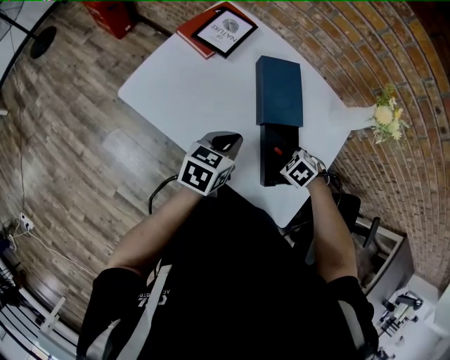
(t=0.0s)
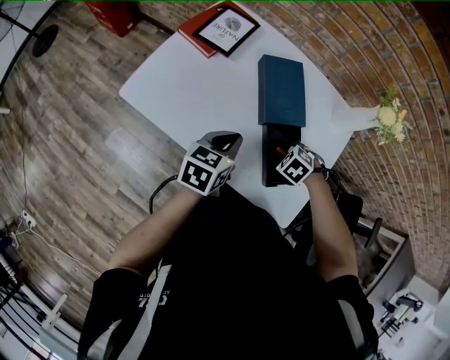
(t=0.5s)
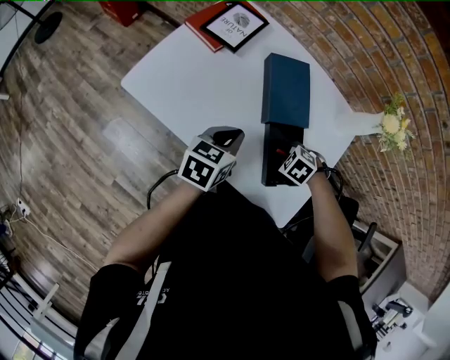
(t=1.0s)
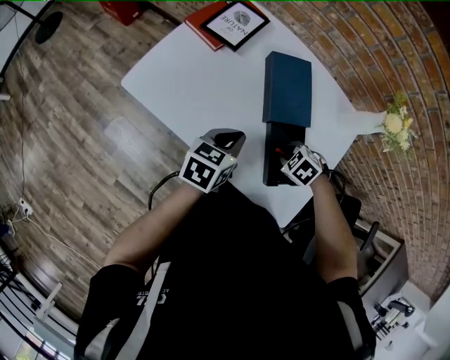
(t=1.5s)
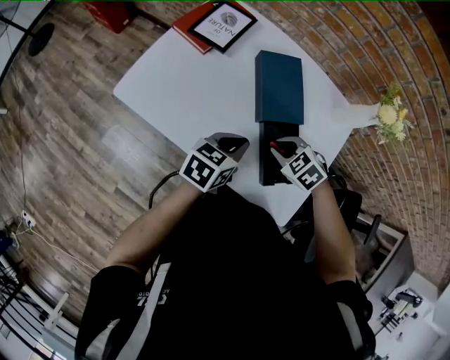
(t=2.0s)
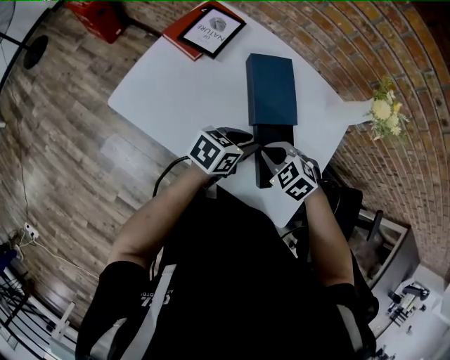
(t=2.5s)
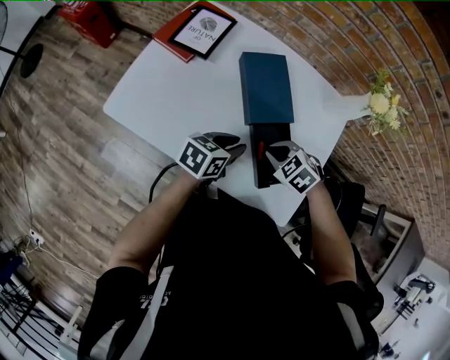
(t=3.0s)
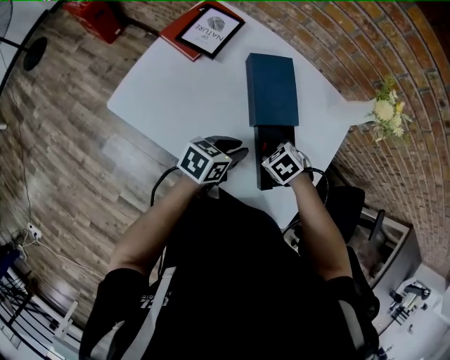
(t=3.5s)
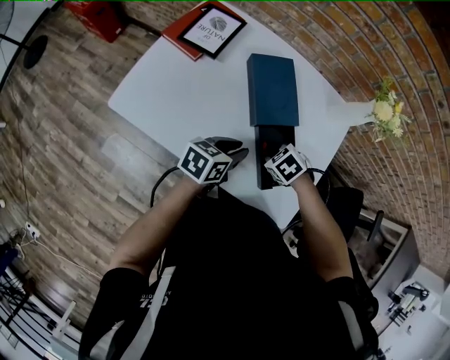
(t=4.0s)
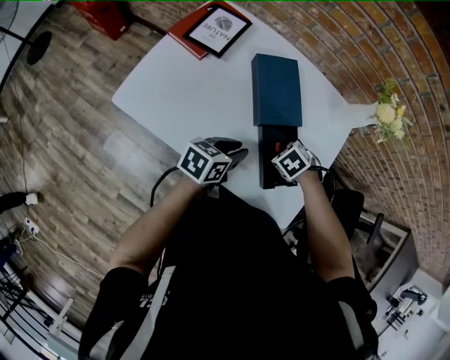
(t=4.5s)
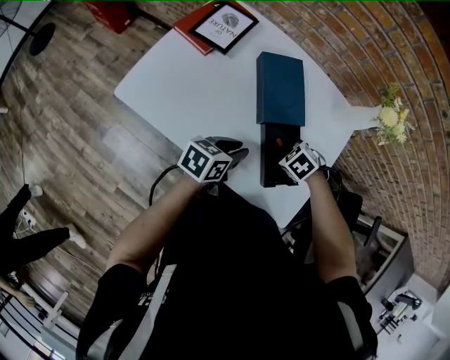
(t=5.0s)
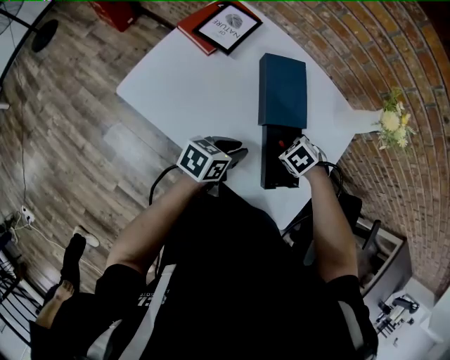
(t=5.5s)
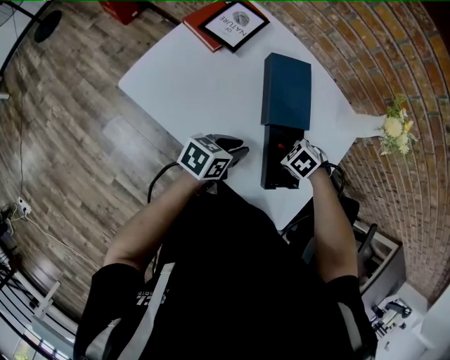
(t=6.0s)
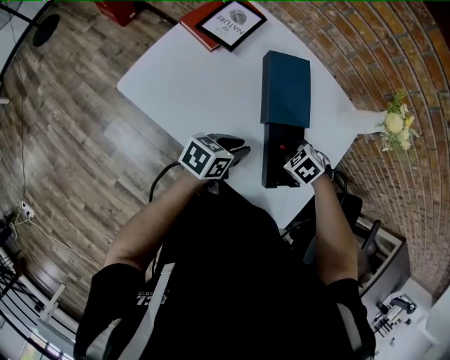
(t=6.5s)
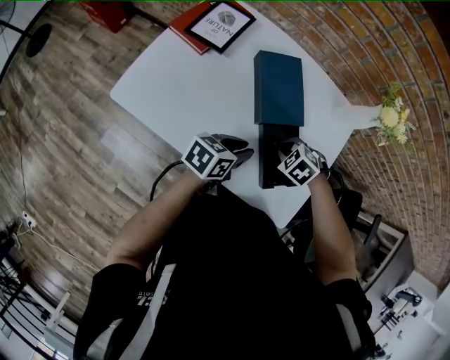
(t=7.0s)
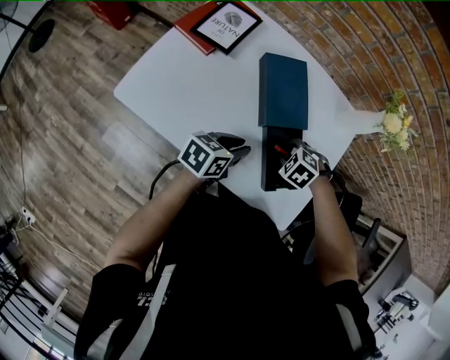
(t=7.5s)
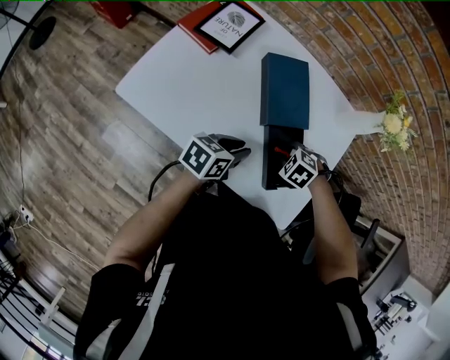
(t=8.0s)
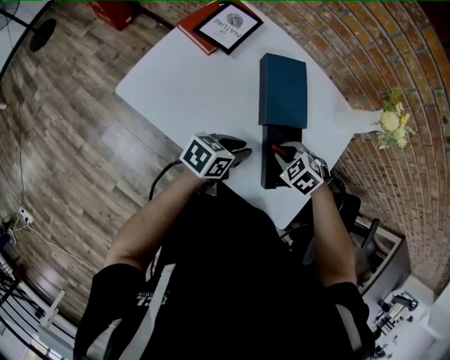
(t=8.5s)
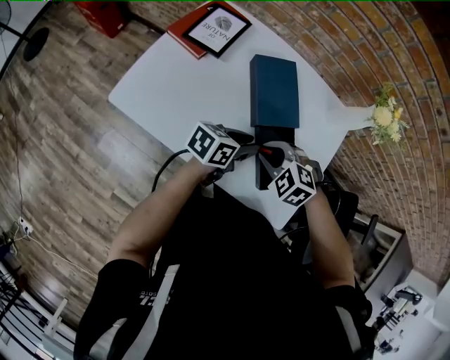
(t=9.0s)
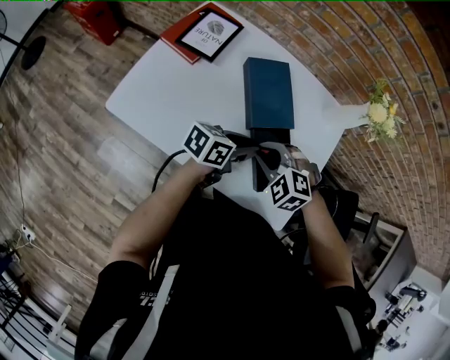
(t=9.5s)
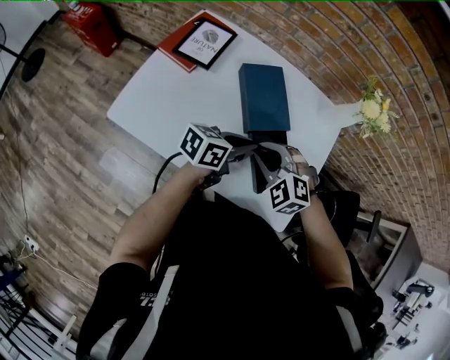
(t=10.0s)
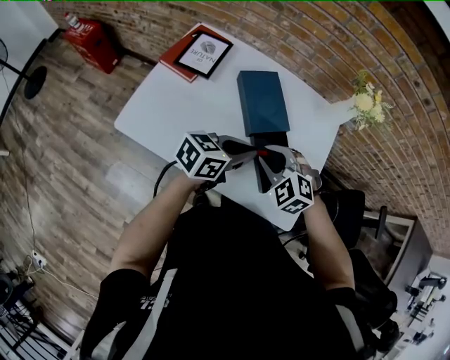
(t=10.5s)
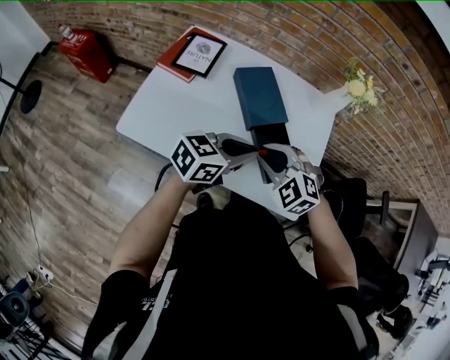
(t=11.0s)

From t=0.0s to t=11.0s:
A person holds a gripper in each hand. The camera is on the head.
From t=0.0s to t=2.0s: The right gripper shifts by about 10 cm.
From t=2.0s to t=3.5s: The right gripper shifts about 5 cm downward; the left gripper opens.
From t=3.5s to t=7.5s: The grippers make only small movements.
From t=7.5s to t=9.0s: The right gripper is displaced upward by about 10 cm, and changes its angle by approximately 20 degrees.
From t=9.0s to t=11.0s: The left gripper is displaced upward and backward by approximately 15 cm, turns by some 30 degrees, and closes its fingers, while the right gripper heads upward, covering roughly 10 cm, and turns by approximately 20 degrees.

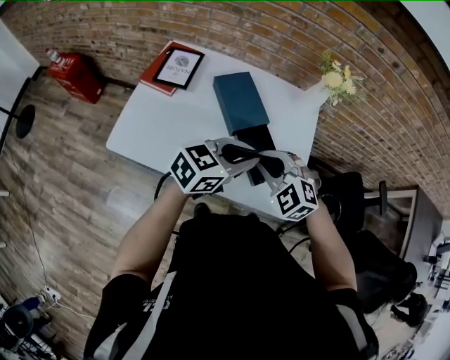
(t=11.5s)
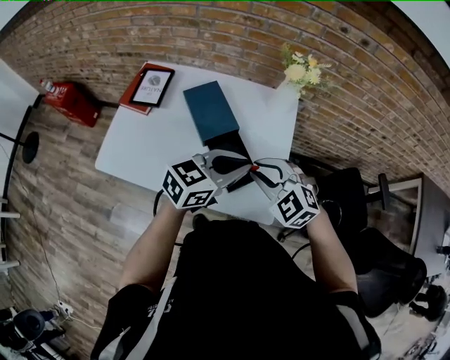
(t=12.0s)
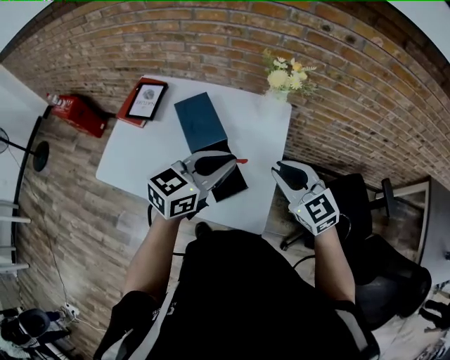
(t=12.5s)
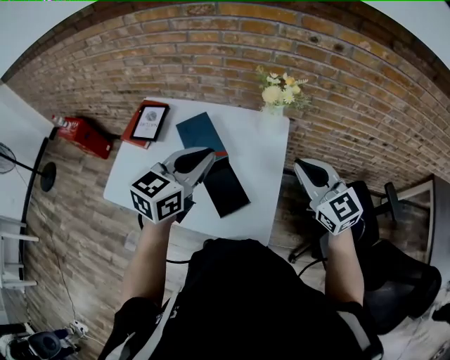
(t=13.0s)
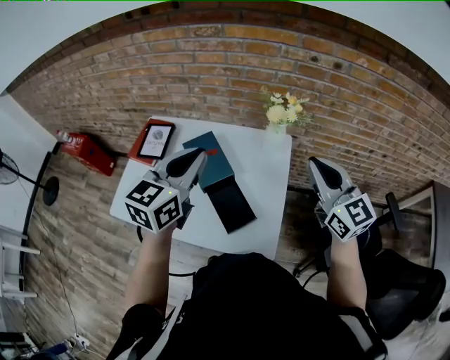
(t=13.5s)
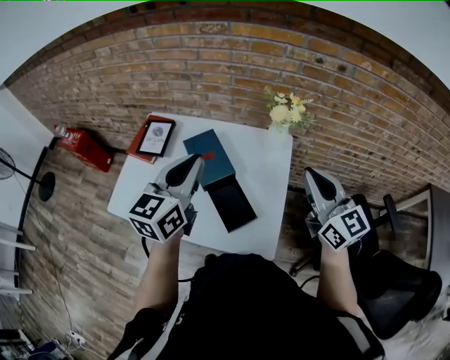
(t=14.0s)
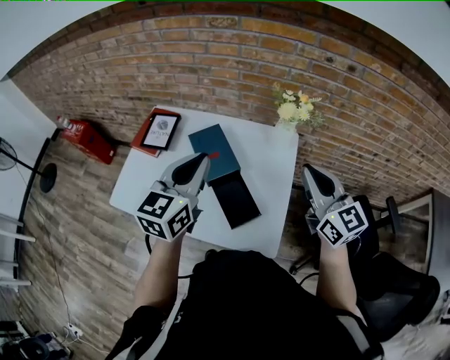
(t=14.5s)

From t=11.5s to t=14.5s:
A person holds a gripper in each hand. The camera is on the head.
From t=11.5s to t=13.0s: The left gripper travels upward, forward and to the right by roughly 15 cm, and changes its angle by about 20 degrees, while the right gripper is displaced to the right and upward by roughly 30 cm, and tips its fingers upward by approximately 30 degrees.
From t=13.0s to t=14.5s: The left gripper goes some 5 cm to the left. Meanwhile the right gripper ends up some 5 cm from where it was.

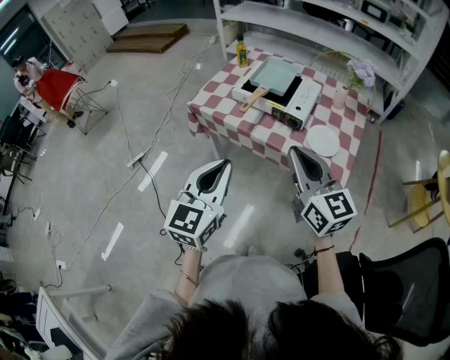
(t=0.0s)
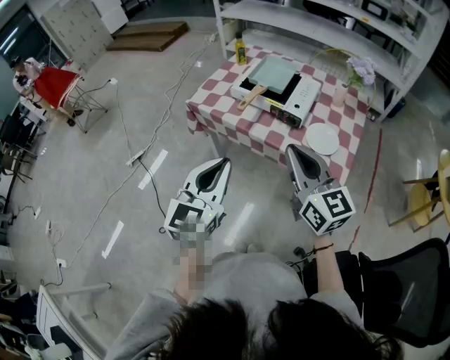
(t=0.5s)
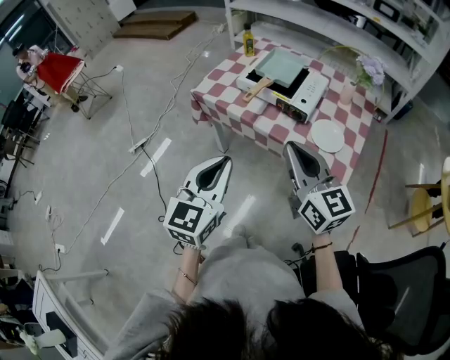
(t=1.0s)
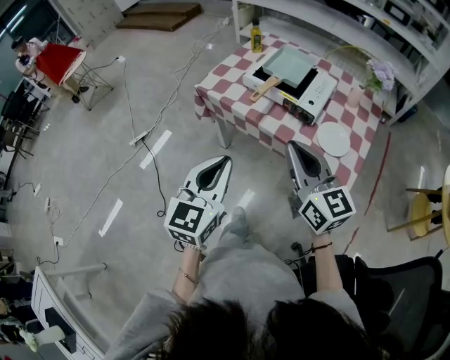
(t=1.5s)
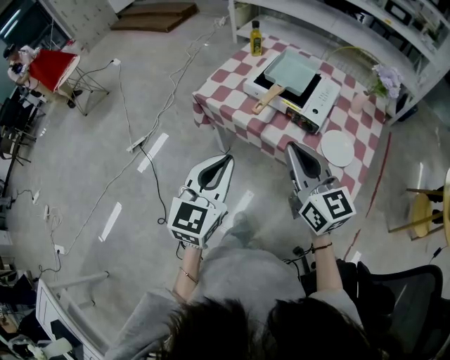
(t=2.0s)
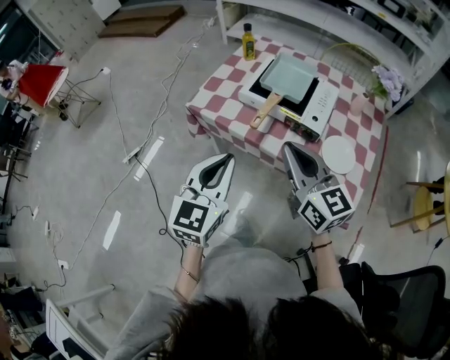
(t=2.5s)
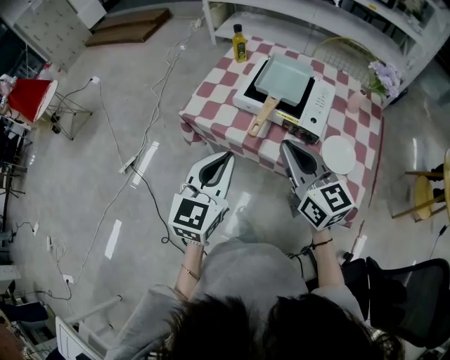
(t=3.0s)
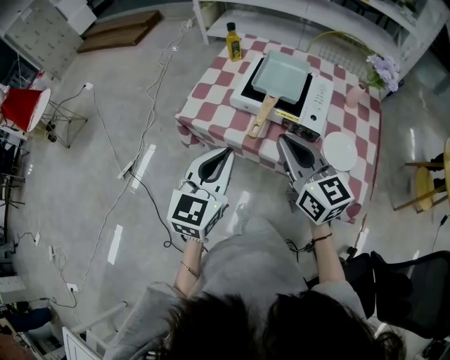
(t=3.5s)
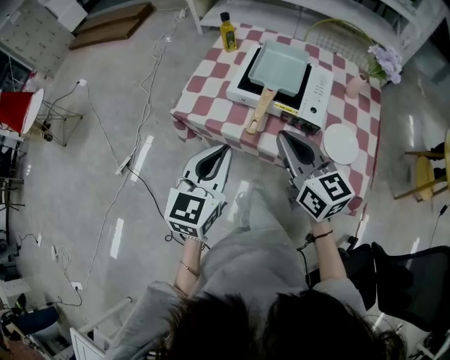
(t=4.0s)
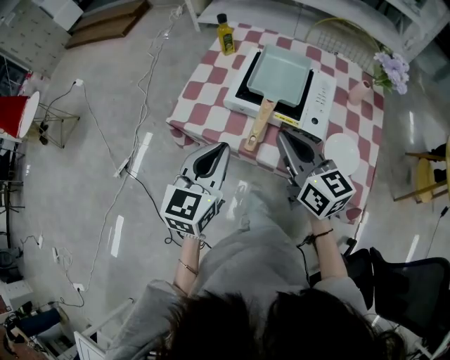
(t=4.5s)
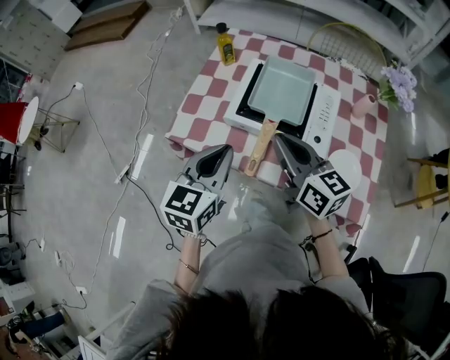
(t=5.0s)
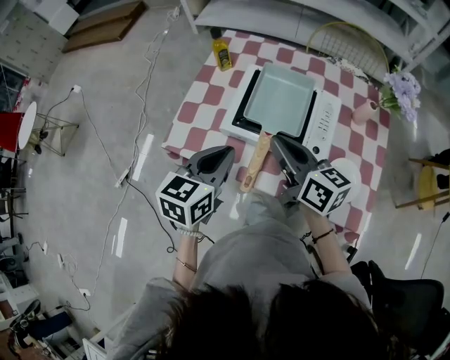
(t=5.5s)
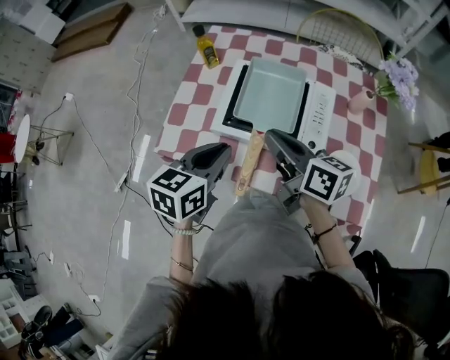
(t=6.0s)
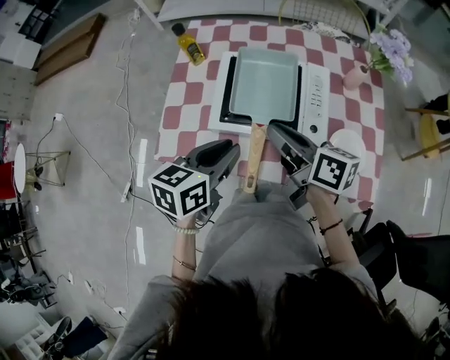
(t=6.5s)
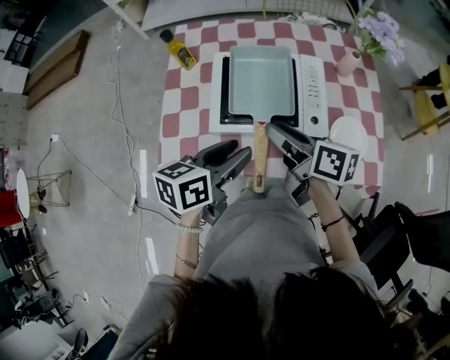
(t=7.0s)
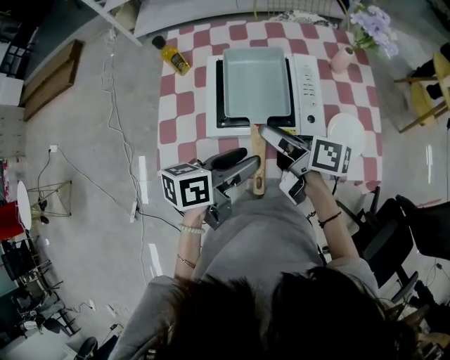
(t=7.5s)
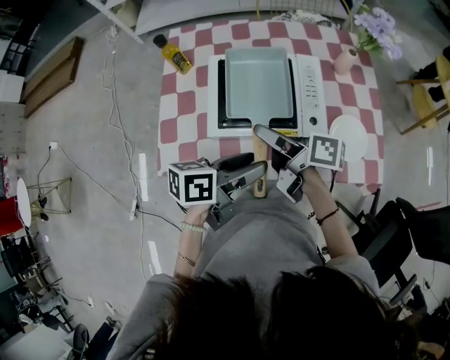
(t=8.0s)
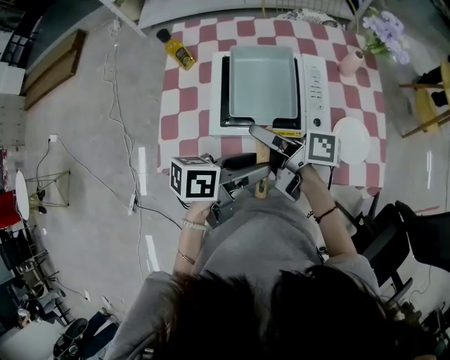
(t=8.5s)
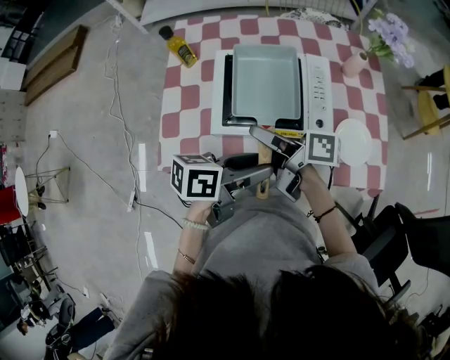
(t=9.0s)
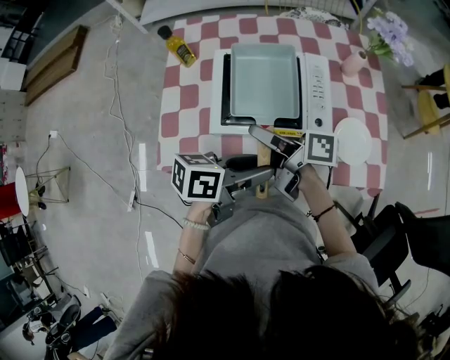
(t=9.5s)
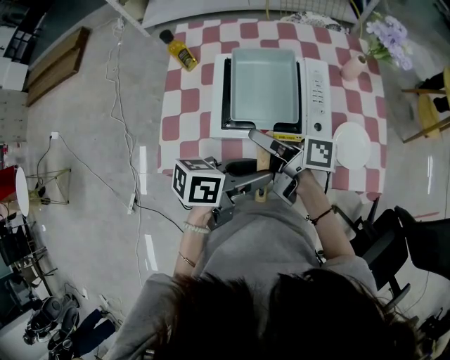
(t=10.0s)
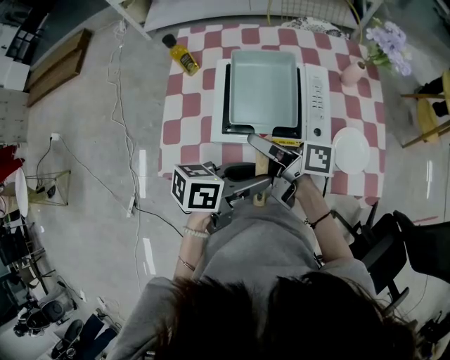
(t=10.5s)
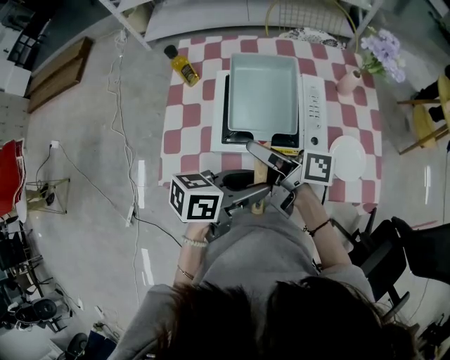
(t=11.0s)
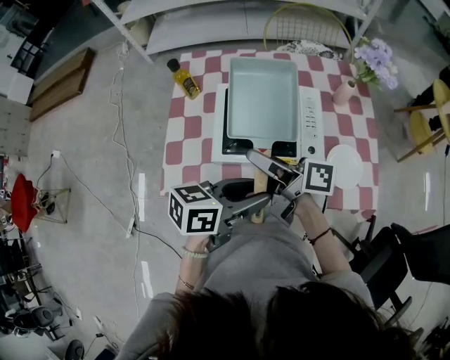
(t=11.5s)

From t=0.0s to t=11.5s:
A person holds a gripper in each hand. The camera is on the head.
From t=0.0s to t=2.0s: Both grippers move forward, roughly 5 cm.
From t=2.0s to t=4.0s: The two grippers go roughly 15 cm forward.
From t=4.0s to t=6.0s: The two grippers go approximately 15 cm forward. The right gripper changes its angle by approximately 30 degrees. Meanwhile the left gripper swivels about 30 degrees.
From t=6.0s to t=7.5s: The right gripper turns by approximately 30 degrees, and opens its fingers. Meanwhile the left gripper changes its angle by about 40 degrees, and opens its fingers.
From t=7.5s to t=9.5s: The grippers make only small movements.
From t=9.5s to t=11.5s: The right gripper is displaced upward by roughly 5 cm.

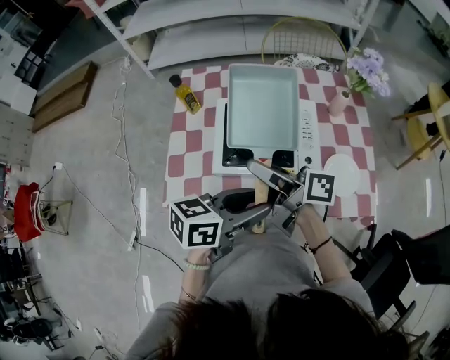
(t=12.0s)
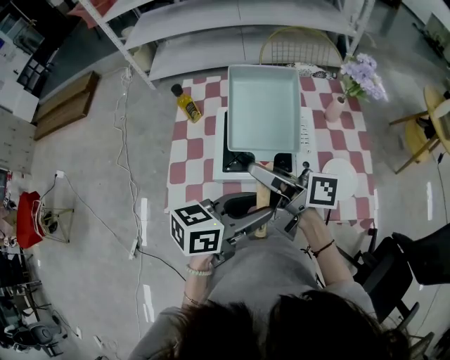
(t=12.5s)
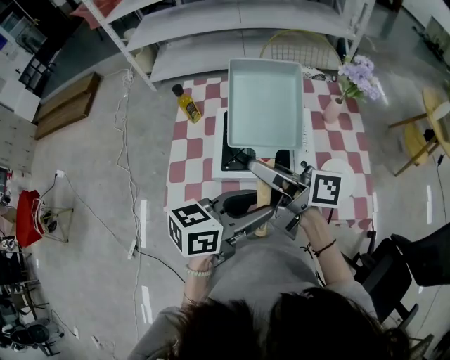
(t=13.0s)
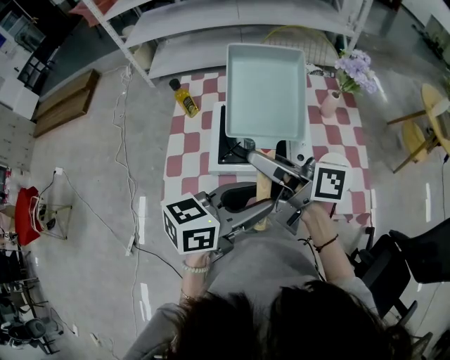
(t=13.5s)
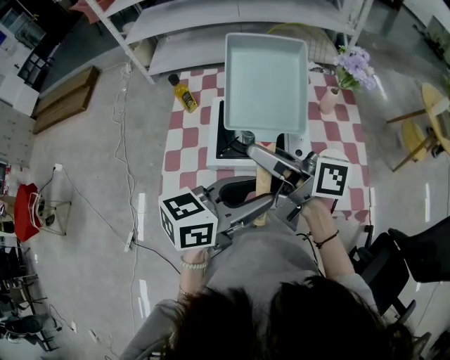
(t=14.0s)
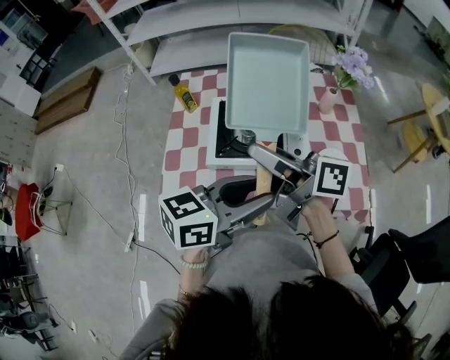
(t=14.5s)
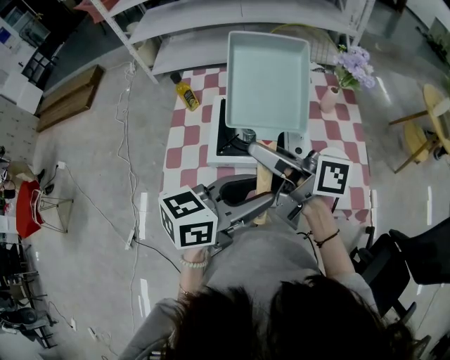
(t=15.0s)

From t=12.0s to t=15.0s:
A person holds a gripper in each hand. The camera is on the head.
From t=12.0s to t=13.5s: The grippers both shift upward by approximately 5 cm.
From t=13.5s to t=15.0s: The grippers stay close to where they were, moving slightly.
